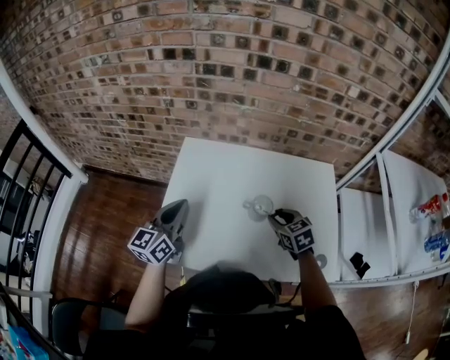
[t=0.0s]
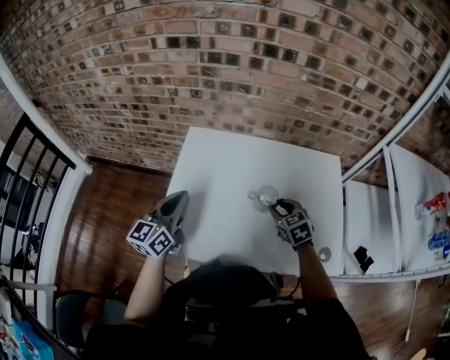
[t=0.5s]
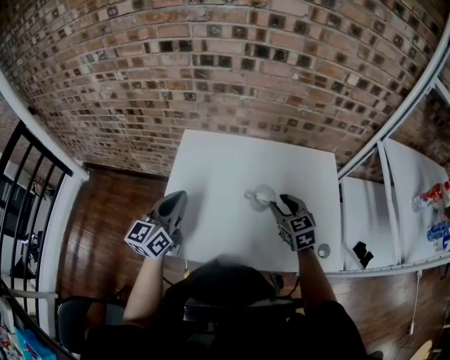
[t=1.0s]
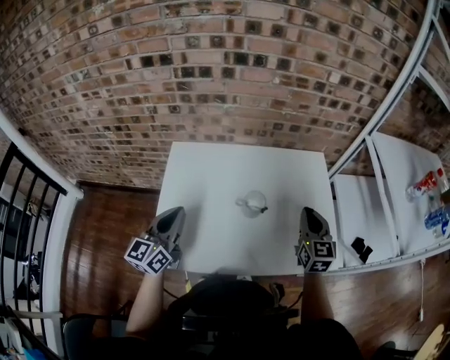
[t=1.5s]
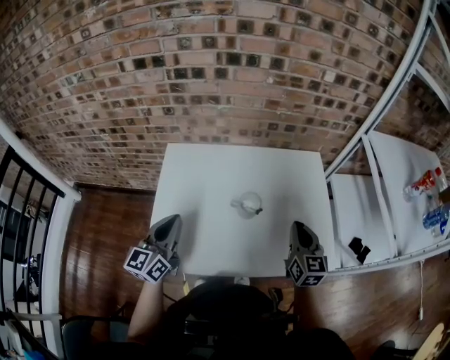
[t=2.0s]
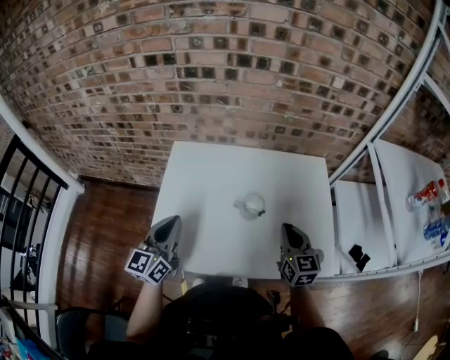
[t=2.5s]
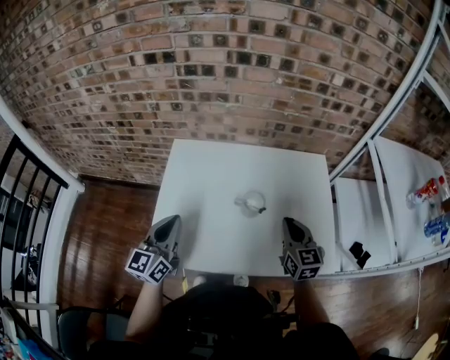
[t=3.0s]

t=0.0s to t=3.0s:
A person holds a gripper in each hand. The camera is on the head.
t=0.0s to t=1.5s: The right gripper is displaced upward and to the right by approximately 15 cm, turns by about 40 degrees, and closes.
t=1.5s to t=3.0s: The right gripper changes place by approximately 5 cm.

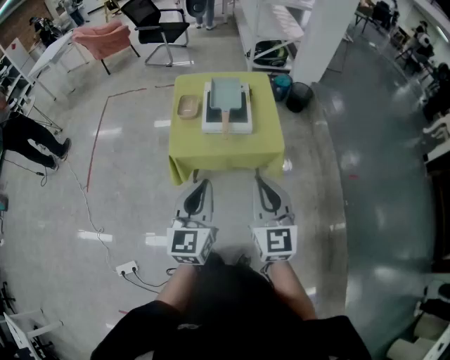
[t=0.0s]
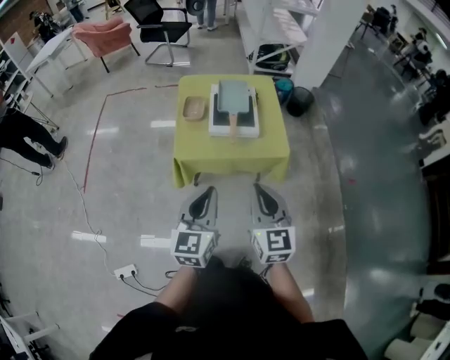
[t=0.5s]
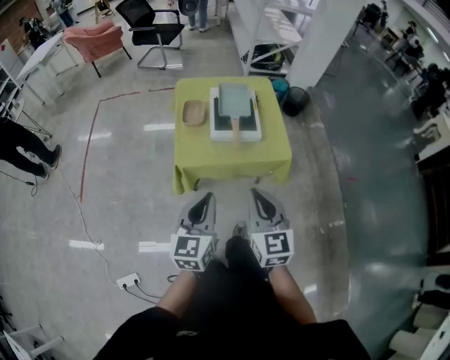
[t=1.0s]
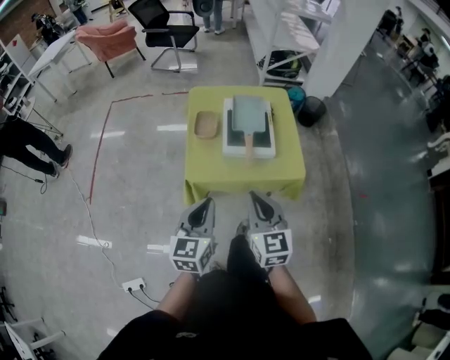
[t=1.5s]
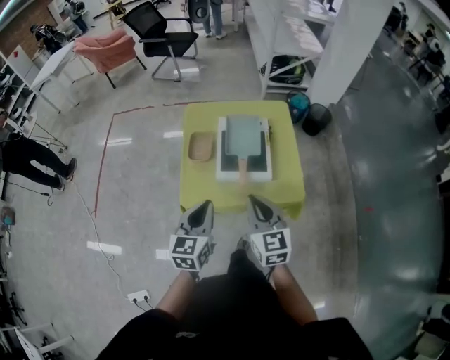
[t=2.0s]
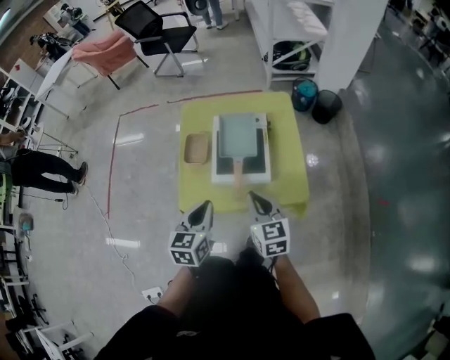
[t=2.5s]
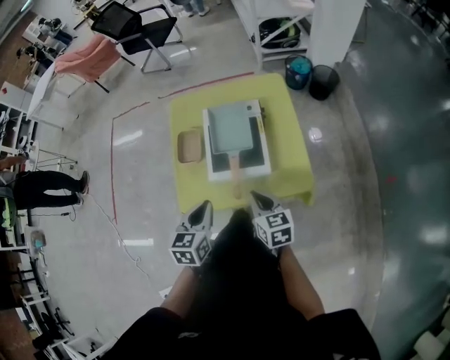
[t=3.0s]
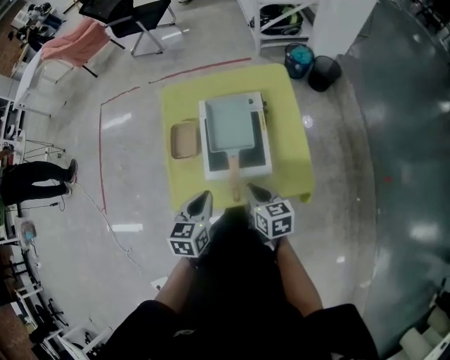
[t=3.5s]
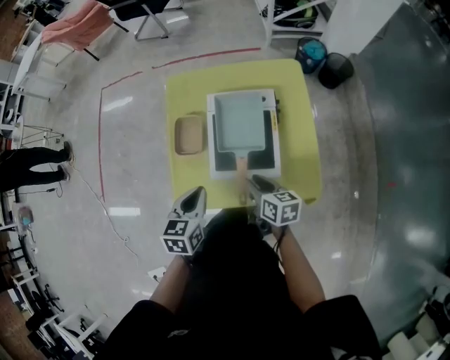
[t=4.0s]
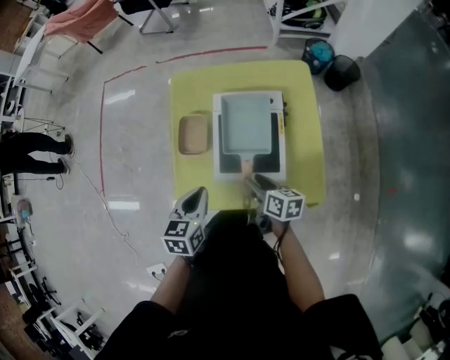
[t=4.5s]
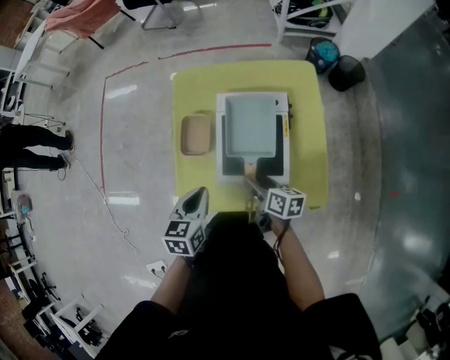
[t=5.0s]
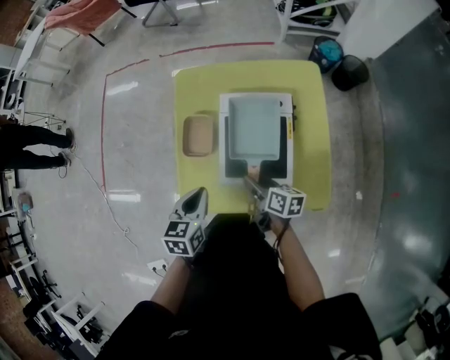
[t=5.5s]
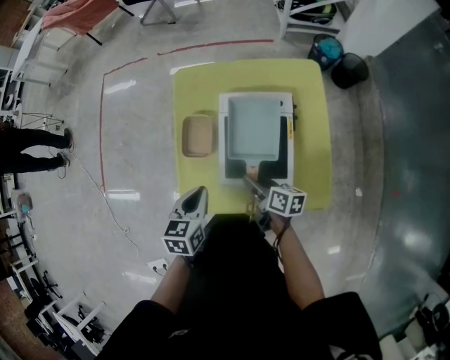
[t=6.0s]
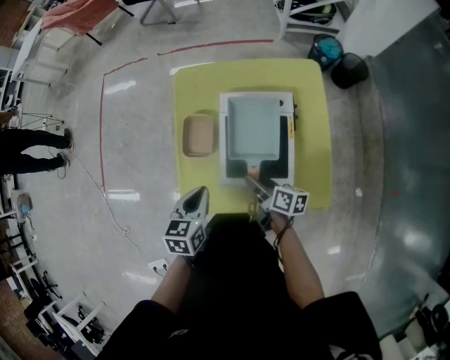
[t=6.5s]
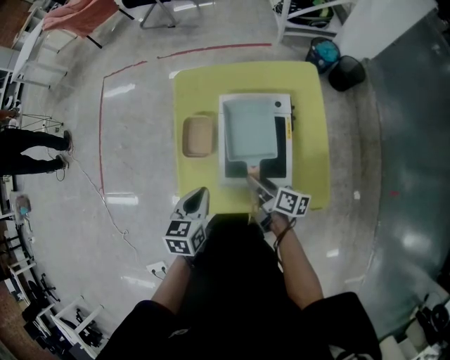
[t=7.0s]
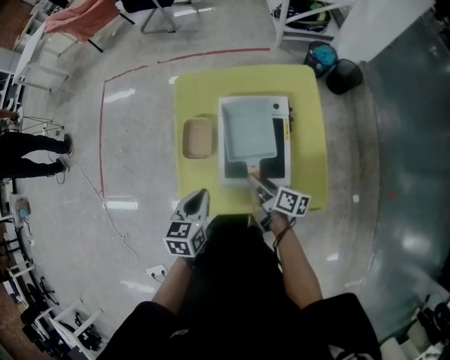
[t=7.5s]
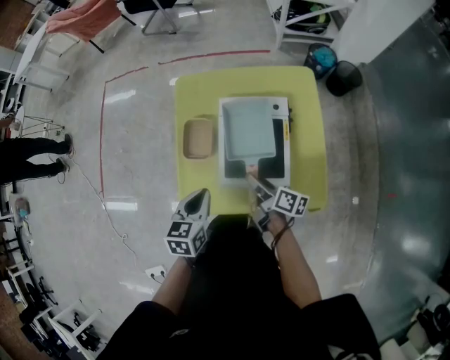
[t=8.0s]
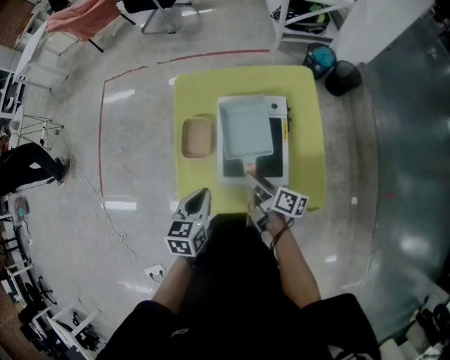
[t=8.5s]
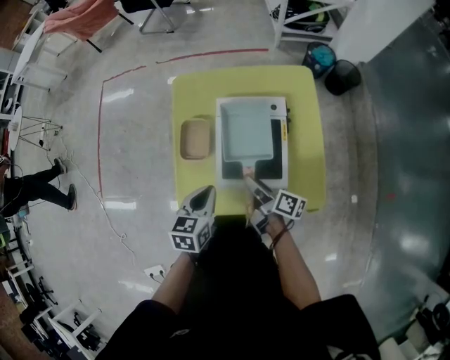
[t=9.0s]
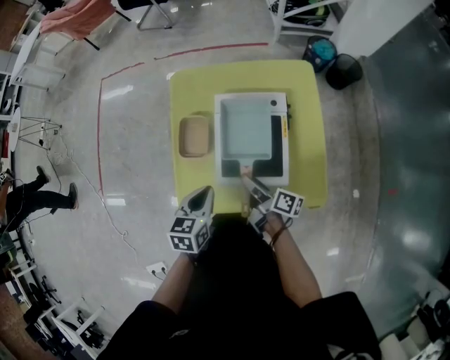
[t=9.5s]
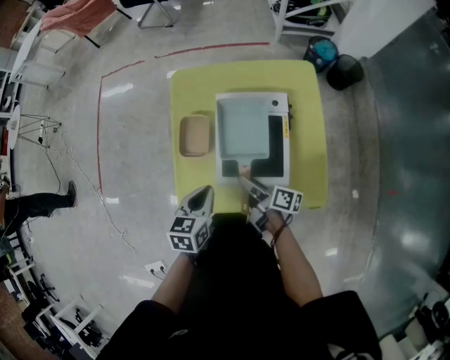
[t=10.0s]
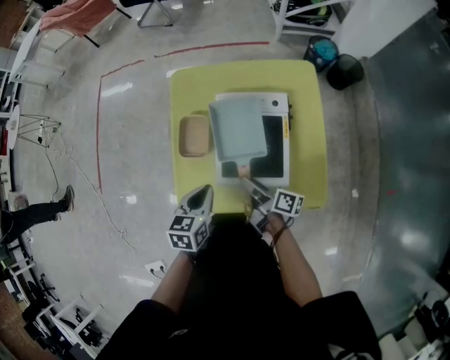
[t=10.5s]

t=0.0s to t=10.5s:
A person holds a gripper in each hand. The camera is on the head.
t=0.0s to t=2.0s: The two grippers go approximately 25 cm forward and downward.
t=2.0s to t=4.0s: The right gripper is displaced downward and forward by approximately 25 cm, changes its angle by some 40 degrees, and opens; the left gripper moves forward and downward, about 20 cm, and turns by roughly 20 degrees.
t=4.0s to t=6.5s: The left gripper ends up roughly 5 cm from where it was. Meanwhile the right gripper moves approximately 5 cm, and changes its angle by approximately 20 degrees.
t=6.5s to t=8.5s: There are only small adjustments of the grippers.
t=8.5s to t=10.5s: The grippers stay close to where they were, moving slightly.

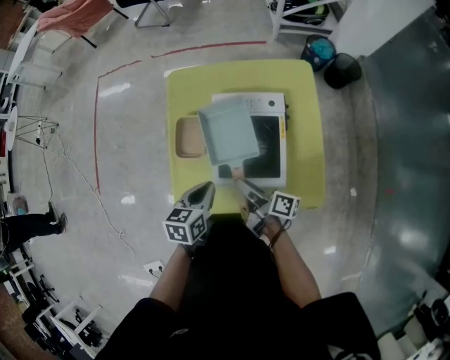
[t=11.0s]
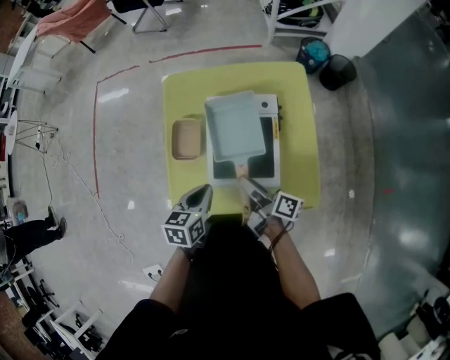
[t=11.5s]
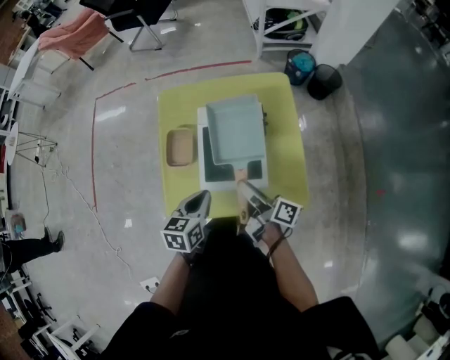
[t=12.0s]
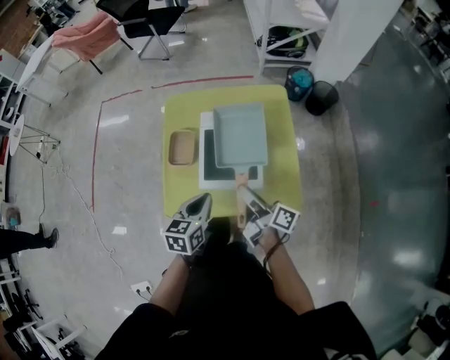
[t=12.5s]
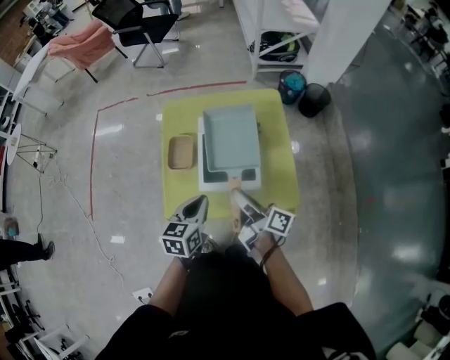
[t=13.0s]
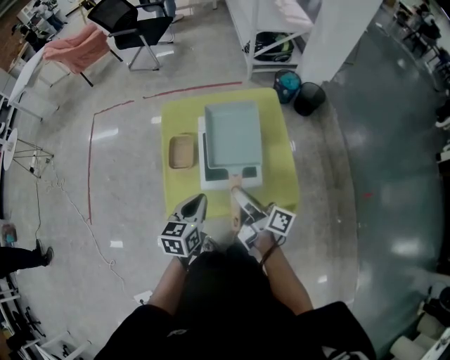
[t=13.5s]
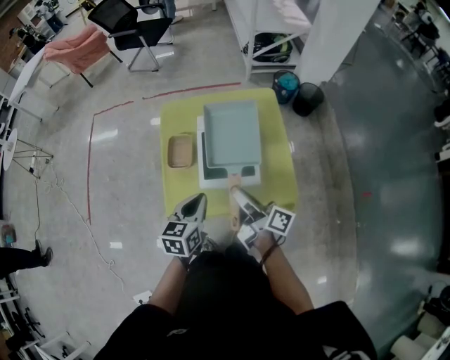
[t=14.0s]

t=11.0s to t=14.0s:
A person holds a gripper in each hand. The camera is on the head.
t=11.0s to t=12.5s: The right gripper shifts roughly 15 cm upward, to the right and backward. The left gripper shifts approximately 10 cm upward and backward.
t=12.5s to t=14.0s: The right gripper shifts approximately 5 cm upward.

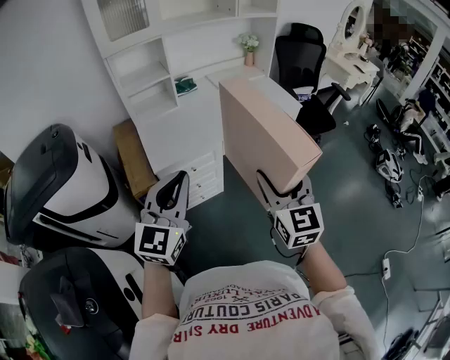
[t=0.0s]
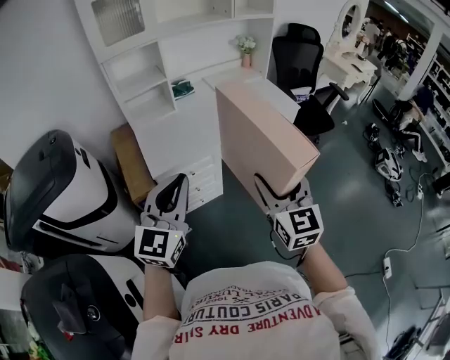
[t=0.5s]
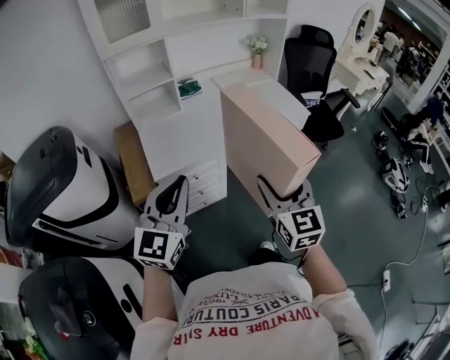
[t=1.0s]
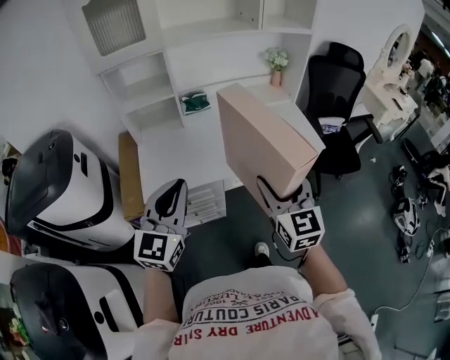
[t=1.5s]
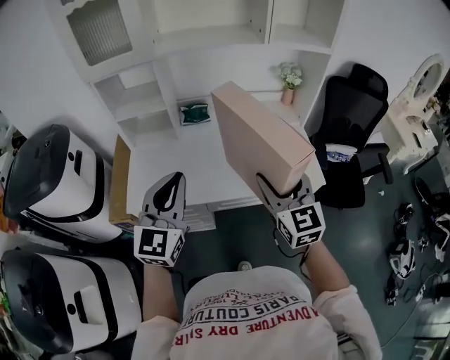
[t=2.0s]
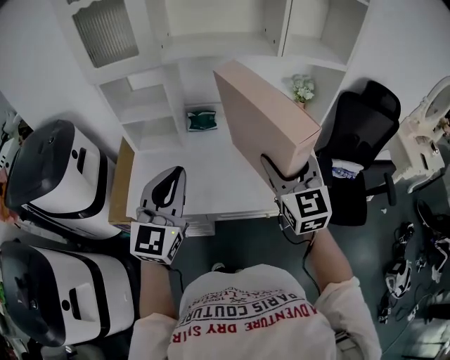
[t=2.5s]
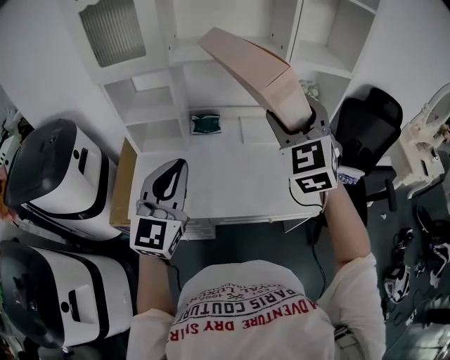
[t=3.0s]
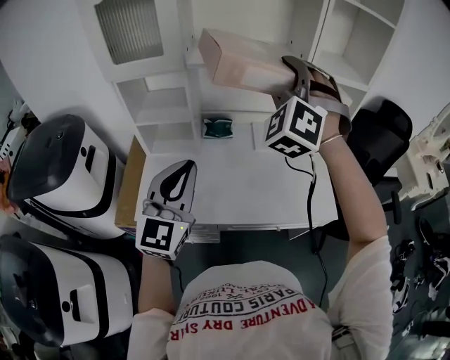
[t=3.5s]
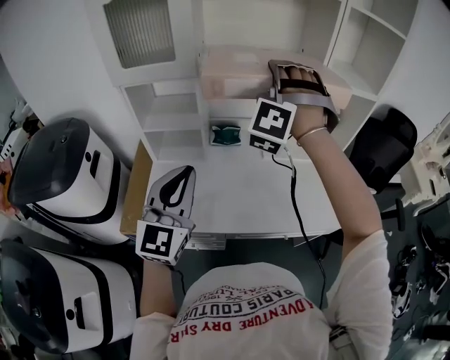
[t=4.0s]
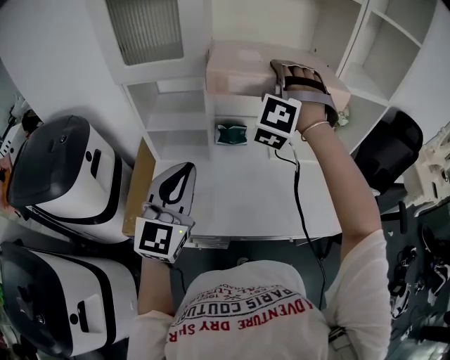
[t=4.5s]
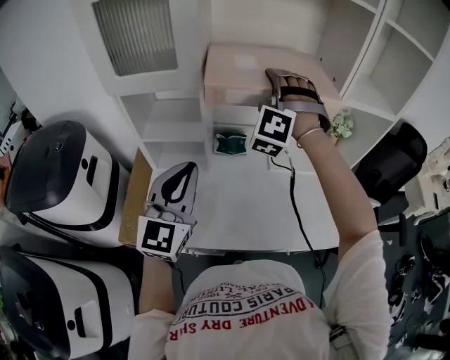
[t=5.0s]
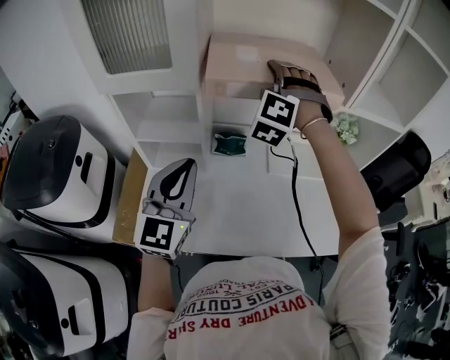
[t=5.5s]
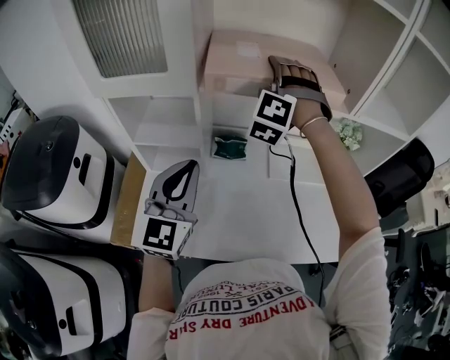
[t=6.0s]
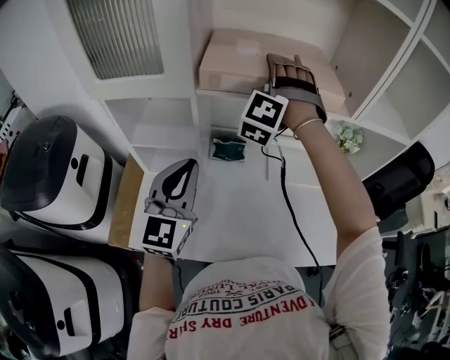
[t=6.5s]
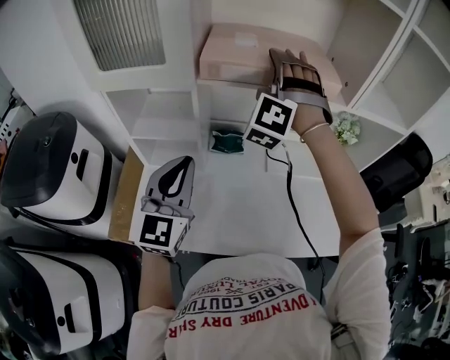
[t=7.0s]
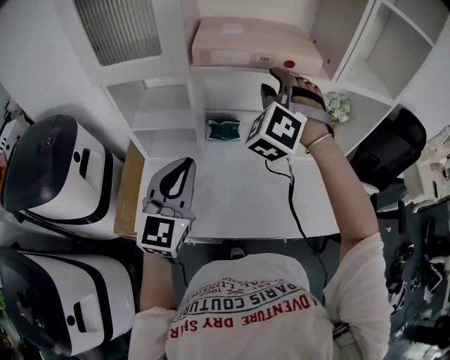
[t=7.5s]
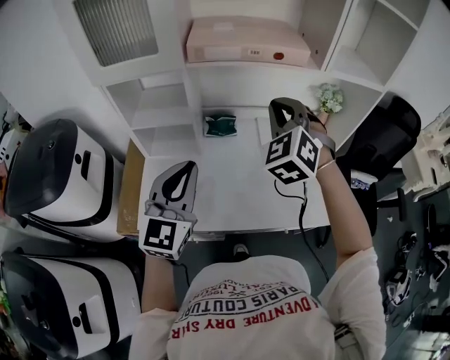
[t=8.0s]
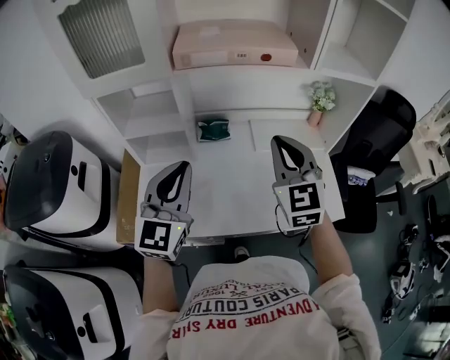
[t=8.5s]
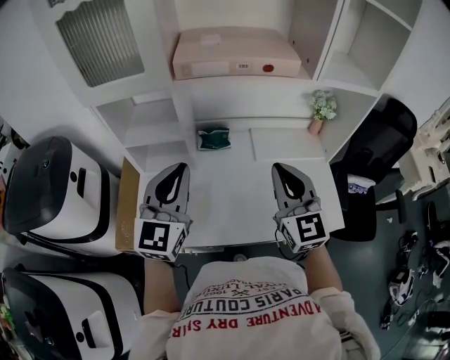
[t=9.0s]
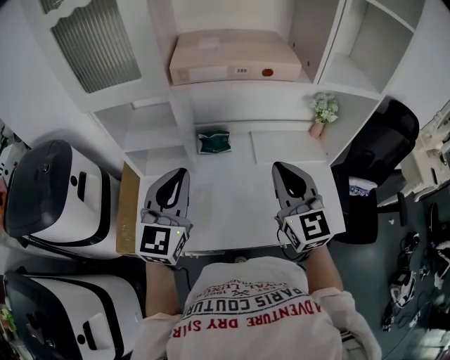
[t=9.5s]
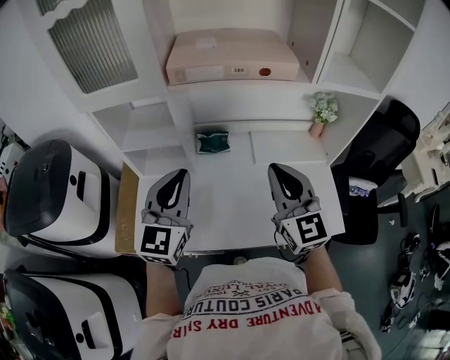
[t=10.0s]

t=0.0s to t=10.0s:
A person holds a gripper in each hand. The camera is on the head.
t=0.0s to t=2.0s: The left gripper shifts some 35 cm forward and to the right, and swivels some 20 degrees. The right gripper goes roughly 40 cm forward, and changes its angle by approximately 30 degrees.
t=2.0s to t=4.0s: The right gripper heads forward, upward and to the left, covering roughly 35 cm, and rolls counterclockwise, seen from behind, by about 80 degrees; the left gripper heads forward and to the left, covering approximately 10 cm.
t=4.0s to t=6.0s: The right gripper travels forward and downward by some 20 cm. Meanwhile the left gripper goes approximately 15 cm forward.
t=6.0s to t=8.0s: The left gripper goes some 10 cm backward. Meanwhile the right gripper is displaced backward and to the right by roughly 20 cm, changes its angle by some 30 degrees, and closes.
t=8.0s to t=10.0s: The left gripper heads forward, covering some 5 cm, while the right gripper shifts approximately 5 cm backward, and rotates around the line of its fingers by approximately 40 degrees, clockwise from behind.
